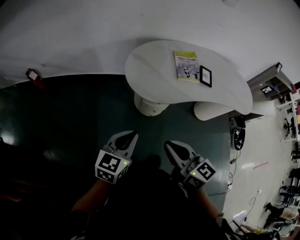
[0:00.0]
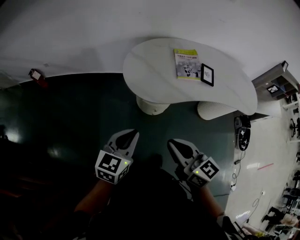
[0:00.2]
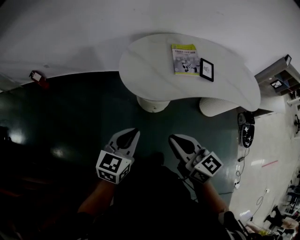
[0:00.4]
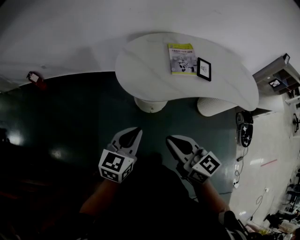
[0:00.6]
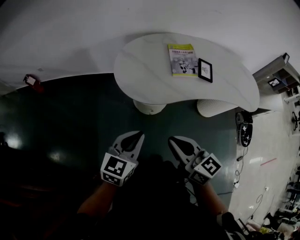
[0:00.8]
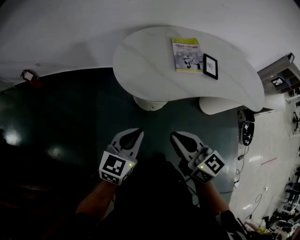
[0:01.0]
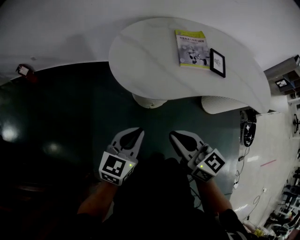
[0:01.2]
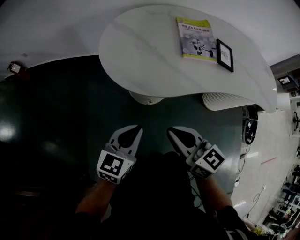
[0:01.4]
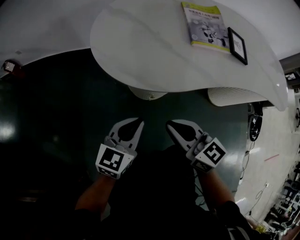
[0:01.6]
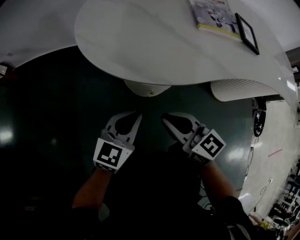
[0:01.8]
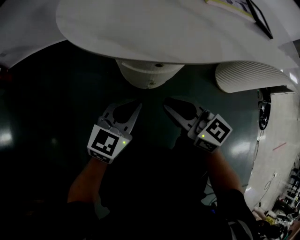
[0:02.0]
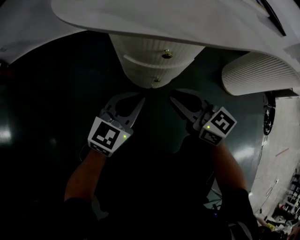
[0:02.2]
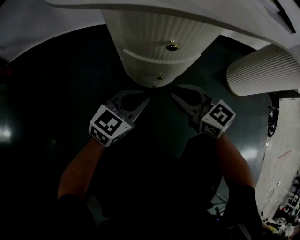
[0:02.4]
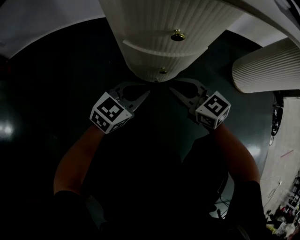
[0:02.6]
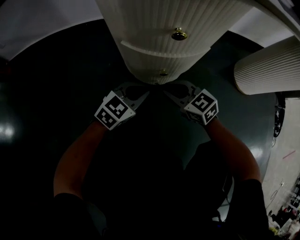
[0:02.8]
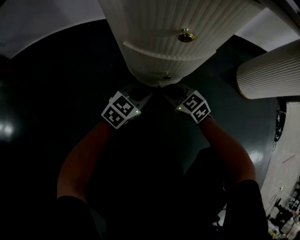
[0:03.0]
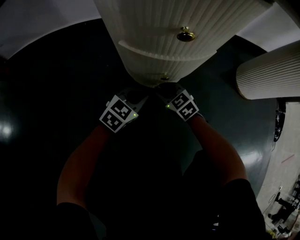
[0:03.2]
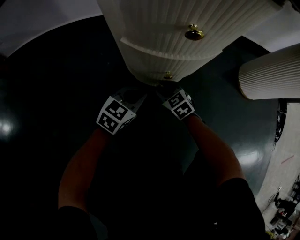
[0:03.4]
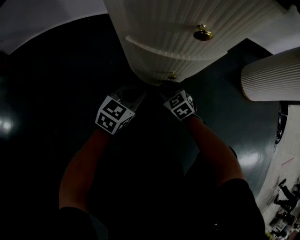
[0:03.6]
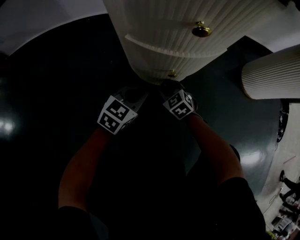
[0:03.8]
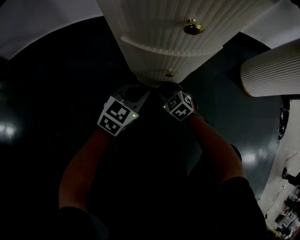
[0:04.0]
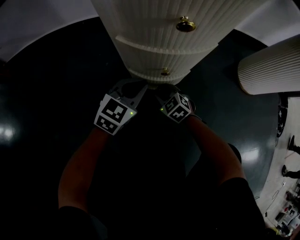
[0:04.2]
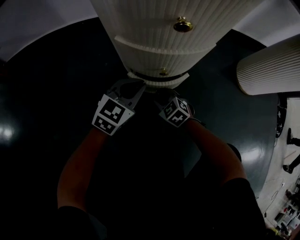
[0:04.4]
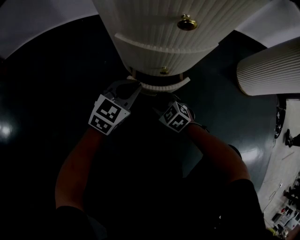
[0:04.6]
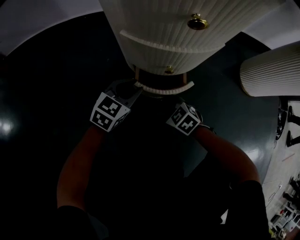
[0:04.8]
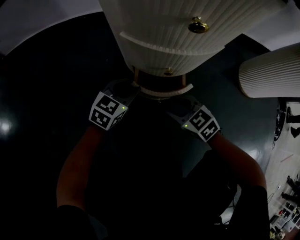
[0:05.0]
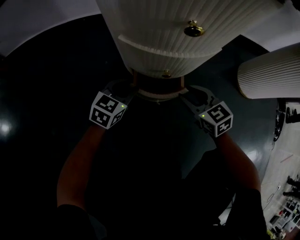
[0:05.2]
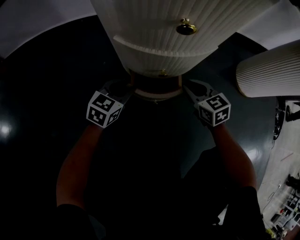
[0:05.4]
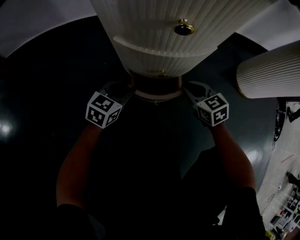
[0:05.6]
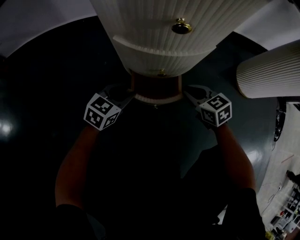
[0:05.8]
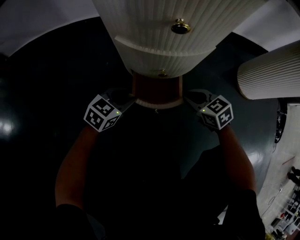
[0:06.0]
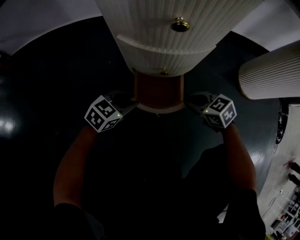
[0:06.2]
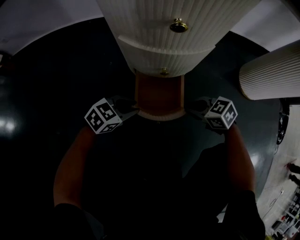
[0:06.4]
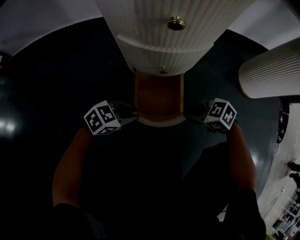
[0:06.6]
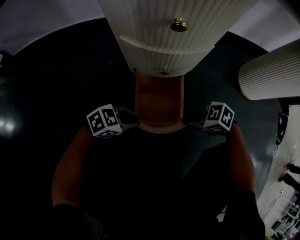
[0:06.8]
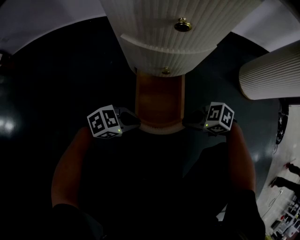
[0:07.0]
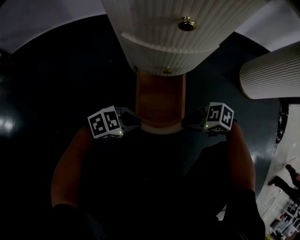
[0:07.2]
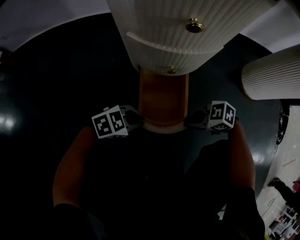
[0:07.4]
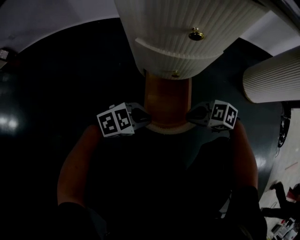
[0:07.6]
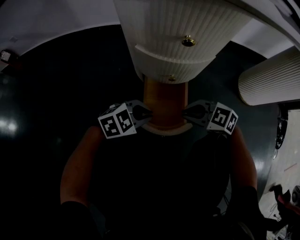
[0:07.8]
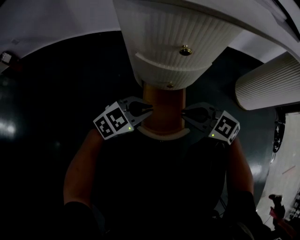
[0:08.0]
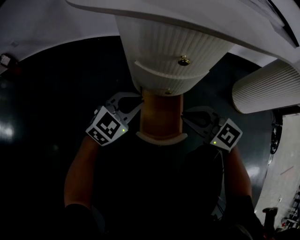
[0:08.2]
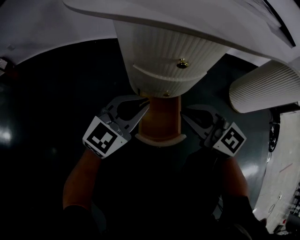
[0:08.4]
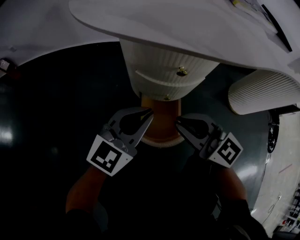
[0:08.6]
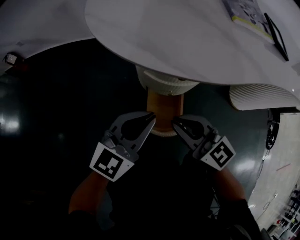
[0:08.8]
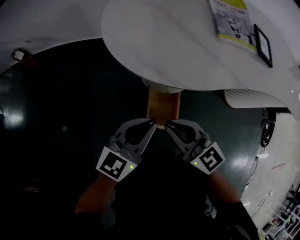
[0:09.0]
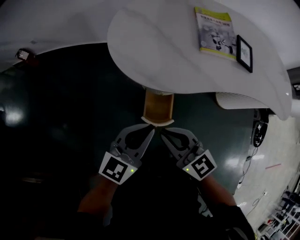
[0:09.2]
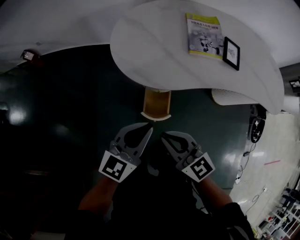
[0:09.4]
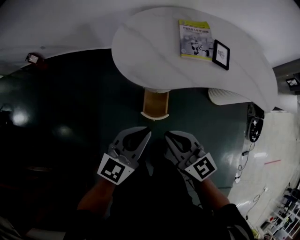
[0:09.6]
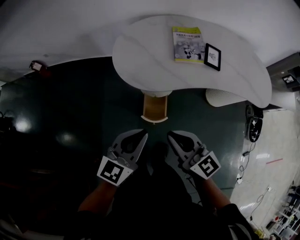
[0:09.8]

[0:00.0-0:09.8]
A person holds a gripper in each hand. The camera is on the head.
0:00.0 to 0:01.4: The right gripper heads downward, forward and to the right, covering roughly 25 cm, while the left gripper heads downward, to the right and forward, covering roughly 25 cm.
0:01.4 to 0:02.8: Both grippers move downward, some 50 cm. The left gripper rotates approximately 30 degrees, while the right gripper swivels roughly 20 degrees.
0:02.8 to 0:04.2: The right gripper heads downward, covering roughly 15 cm, and turns by about 30 degrees.
0:04.2 to 0:05.6: The left gripper moves downward, approximately 5 cm, and opens up. The right gripper shifts about 15 cm to the right and upward, turns by roughly 30 degrees, and opens, then closes again.
0:05.6 to 0:07.0: The left gripper changes place by some 15 cm, rotates some 40 degrees, and closes its fingers. The right gripper moves roughly 15 cm, and rotates some 50 degrees.
0:07.0 to 0:08.4: The two grippers go some 25 cm upward. The right gripper tilts its fingers approximately 40 degrees upward. The left gripper changes its angle by roughly 50 degrees.
0:08.4 to 0:09.8: Both grippers move upward, about 50 cm. The right gripper swivels about 20 degrees, while the left gripper swivels some 30 degrees.

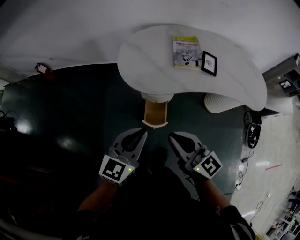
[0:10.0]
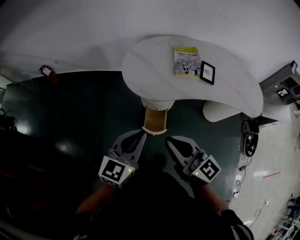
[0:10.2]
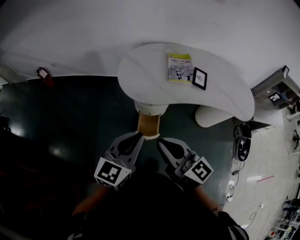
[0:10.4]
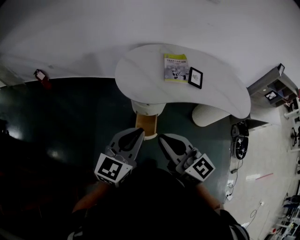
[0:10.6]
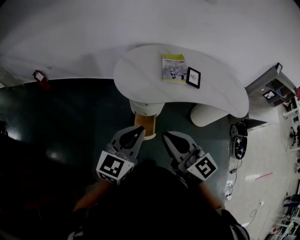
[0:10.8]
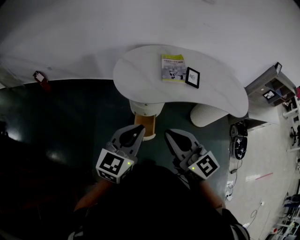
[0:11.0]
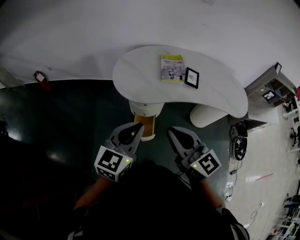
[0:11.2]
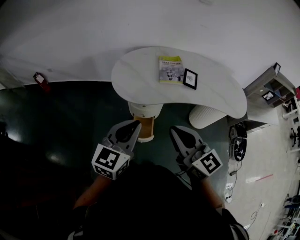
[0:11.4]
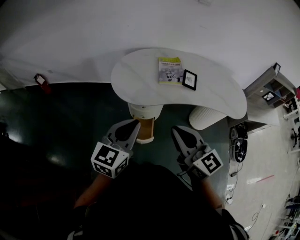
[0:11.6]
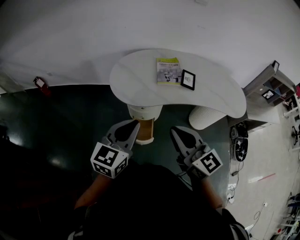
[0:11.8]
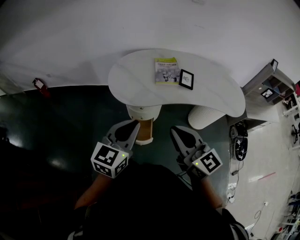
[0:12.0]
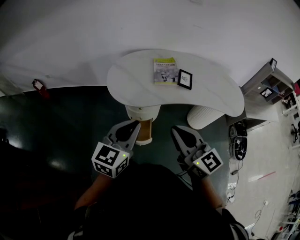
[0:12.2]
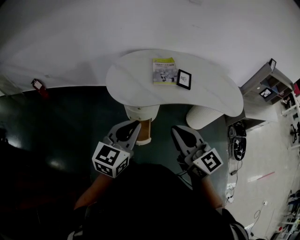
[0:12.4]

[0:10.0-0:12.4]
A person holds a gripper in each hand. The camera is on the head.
0:10.0 to 0:11.2: Both grippers move upward, approximately 10 cm.
0:11.2 to 0:12.4: The right gripper goes roughly 5 cm to the right.

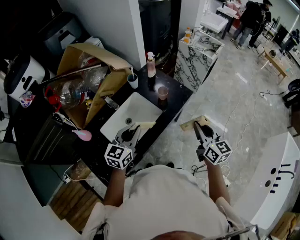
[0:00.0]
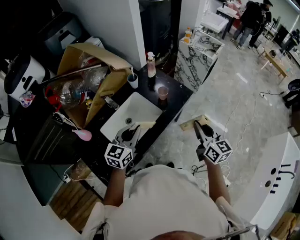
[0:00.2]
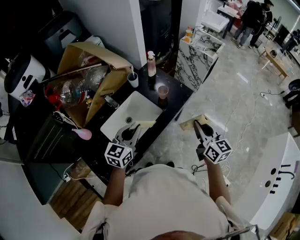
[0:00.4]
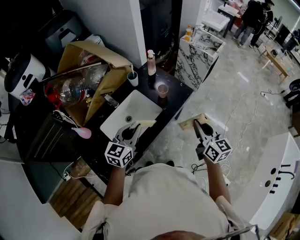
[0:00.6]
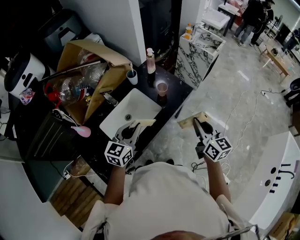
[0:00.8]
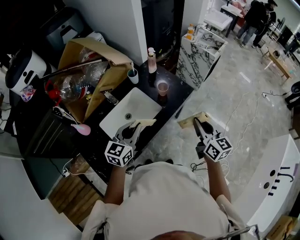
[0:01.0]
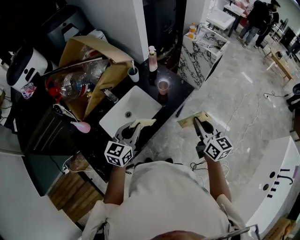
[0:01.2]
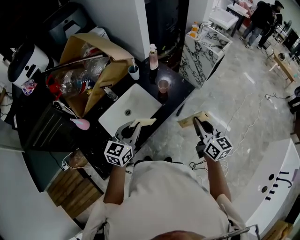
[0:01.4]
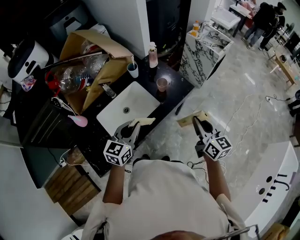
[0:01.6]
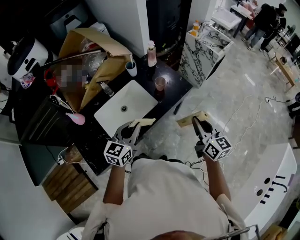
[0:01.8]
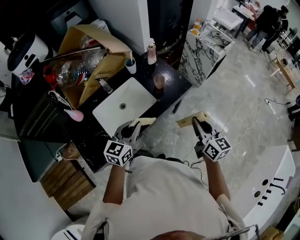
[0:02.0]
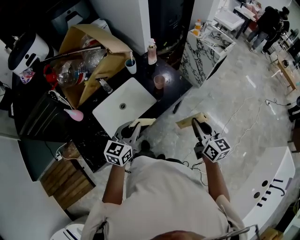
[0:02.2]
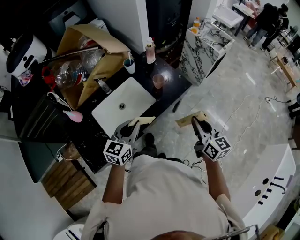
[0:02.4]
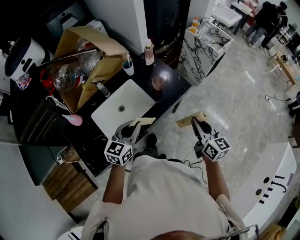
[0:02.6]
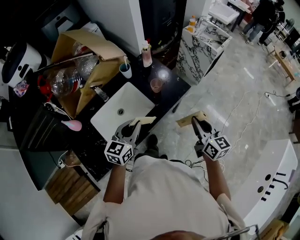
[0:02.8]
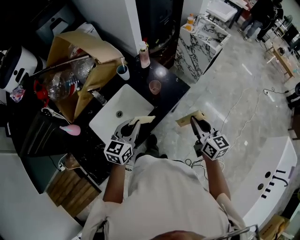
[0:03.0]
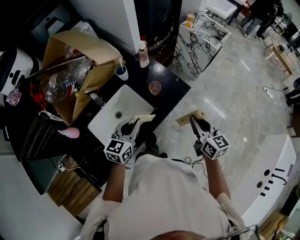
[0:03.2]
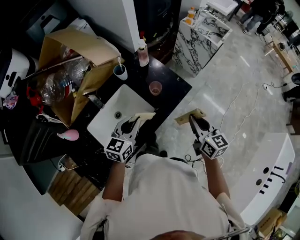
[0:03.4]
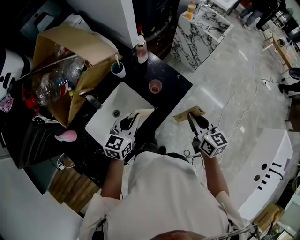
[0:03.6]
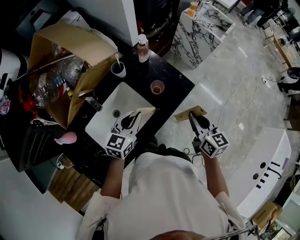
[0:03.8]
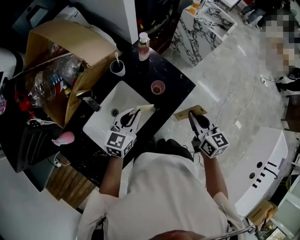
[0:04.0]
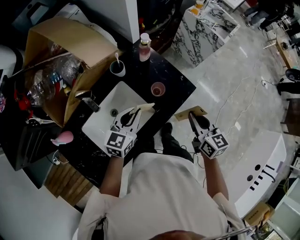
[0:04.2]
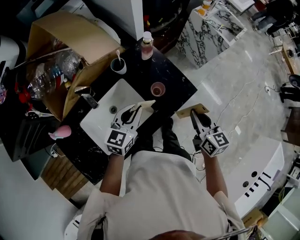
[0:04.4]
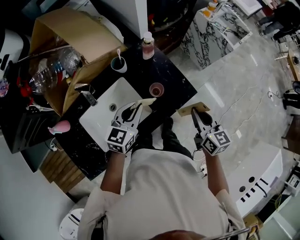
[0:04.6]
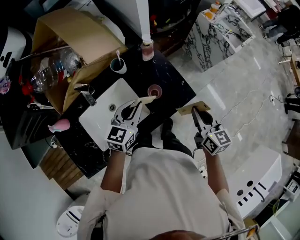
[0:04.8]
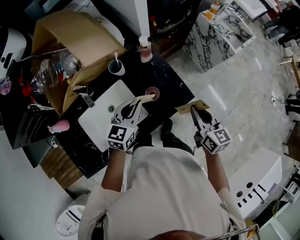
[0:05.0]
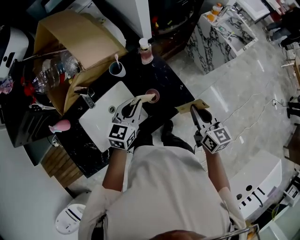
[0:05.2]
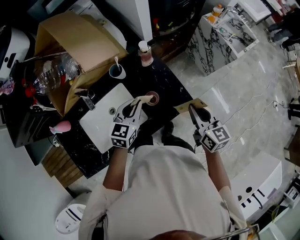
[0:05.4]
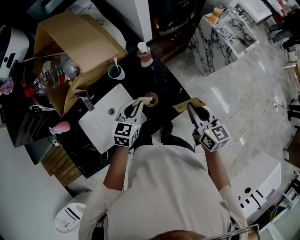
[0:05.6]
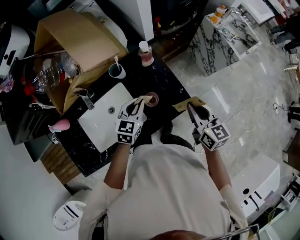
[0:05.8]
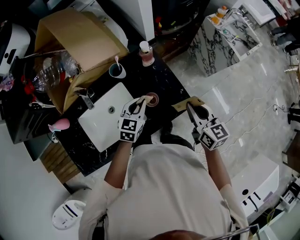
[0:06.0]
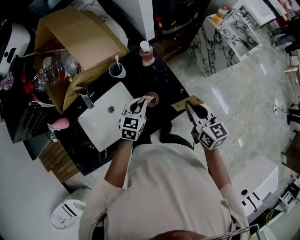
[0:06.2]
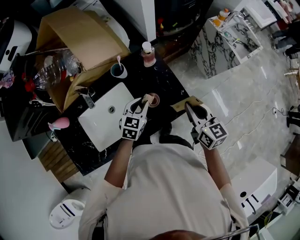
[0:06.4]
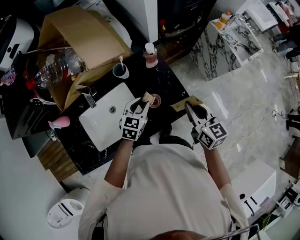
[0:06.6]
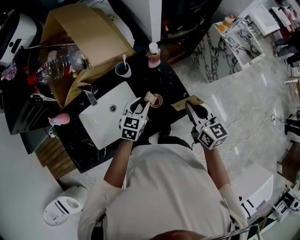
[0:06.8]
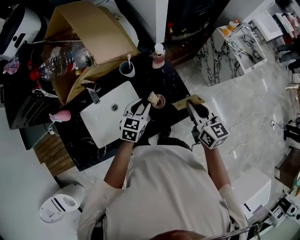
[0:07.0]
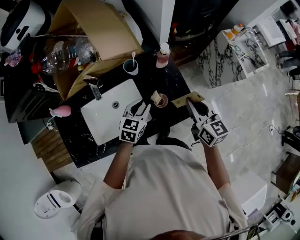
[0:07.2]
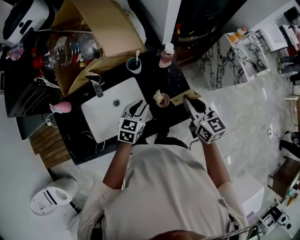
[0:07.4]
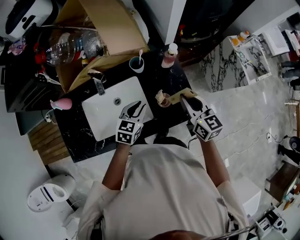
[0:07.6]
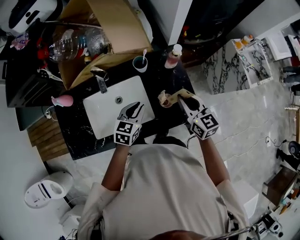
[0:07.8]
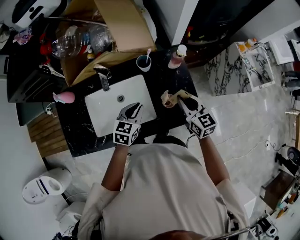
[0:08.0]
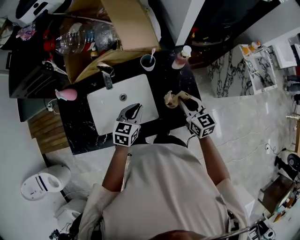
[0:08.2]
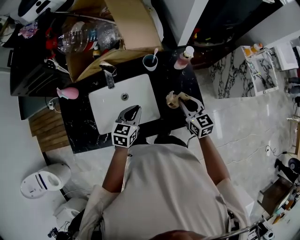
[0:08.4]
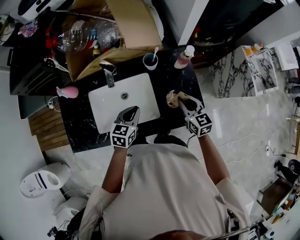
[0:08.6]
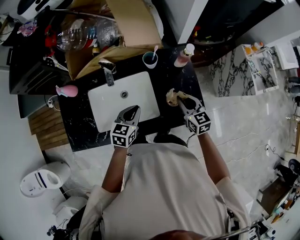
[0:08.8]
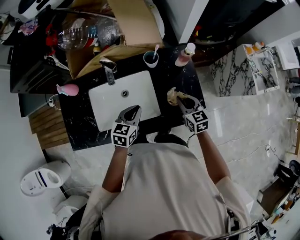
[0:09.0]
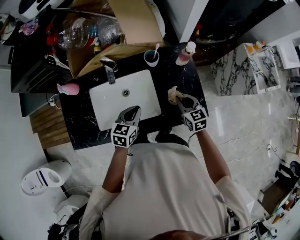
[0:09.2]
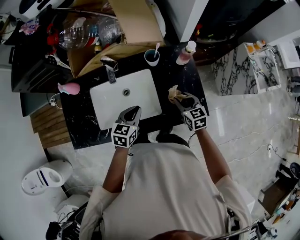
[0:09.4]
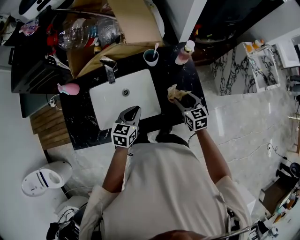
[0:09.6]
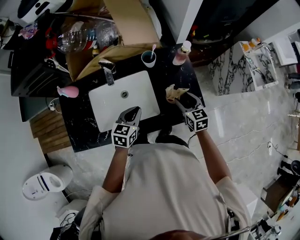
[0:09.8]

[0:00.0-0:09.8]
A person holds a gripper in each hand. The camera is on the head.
0:00.0 to 0:01.4: There are only small adjustments of the grippers.
0:01.4 to 0:02.8: The left gripper moves roughly 5 cm; the right gripper ends up roughly 5 cm from where it was.
0:02.8 to 0:04.2: The grippers both shift forward by roughly 15 cm.
0:04.2 to 0:05.6: Both grippers travel together forward and to the right, approximately 10 cm.
0:05.6 to 0:07.0: The right gripper moves some 5 cm.
0:07.0 to 0:08.4: The right gripper travels to the left and downward by about 15 cm, and swivels roughly 20 degrees; the left gripper heads to the left, covering roughly 10 cm, and closes up.
0:08.4 to 0:09.8: The right gripper travels downward by some 5 cm, and opens.

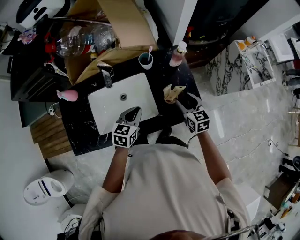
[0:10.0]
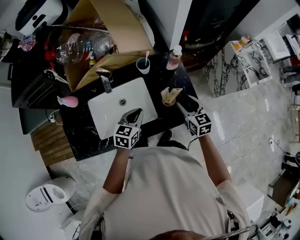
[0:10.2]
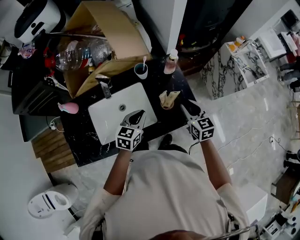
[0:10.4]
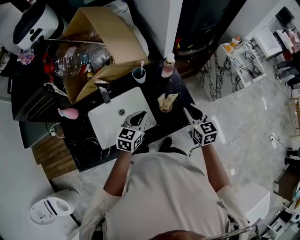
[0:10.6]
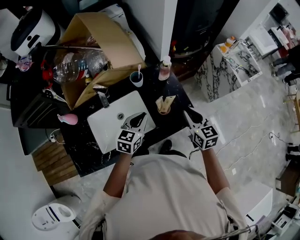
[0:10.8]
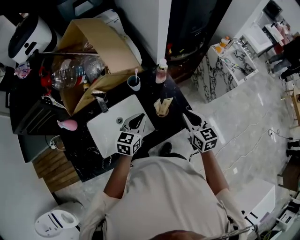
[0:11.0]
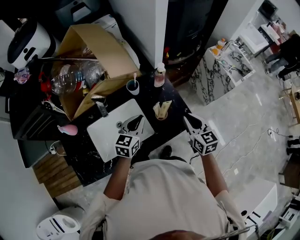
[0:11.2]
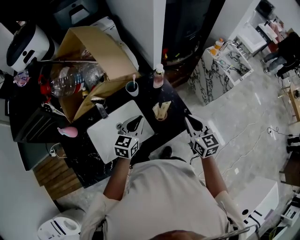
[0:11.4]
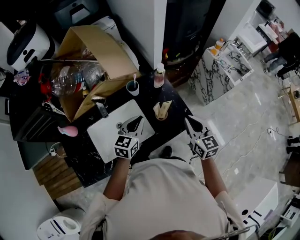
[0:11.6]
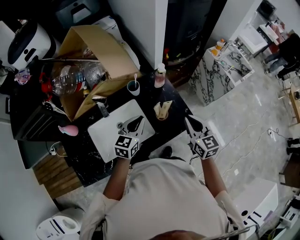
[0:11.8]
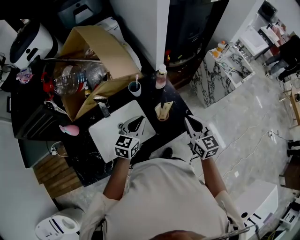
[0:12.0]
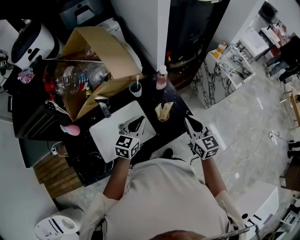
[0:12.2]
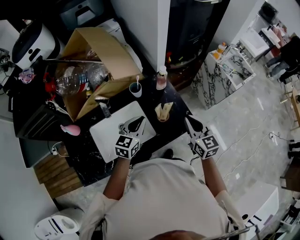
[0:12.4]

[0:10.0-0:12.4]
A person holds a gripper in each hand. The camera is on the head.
0:10.0 to 0:11.2: The right gripper is displaced upward, backward and to the right by roughly 15 cm, and closes, while the left gripper heads upward and to the right, covering about 10 cm.
0:11.2 to 0:12.4: The grippers stay close to where they were, moving slightly.
